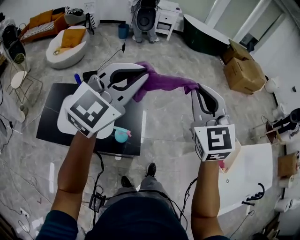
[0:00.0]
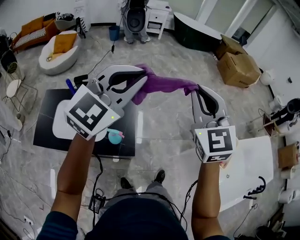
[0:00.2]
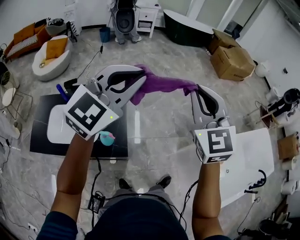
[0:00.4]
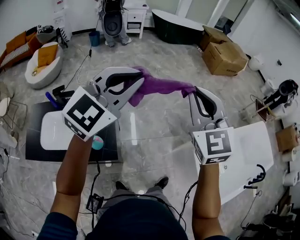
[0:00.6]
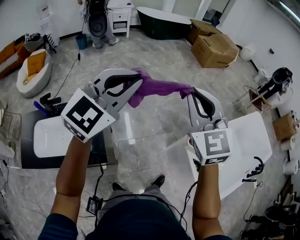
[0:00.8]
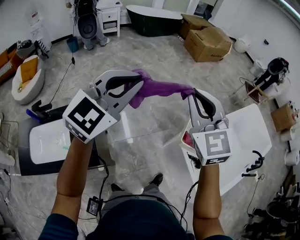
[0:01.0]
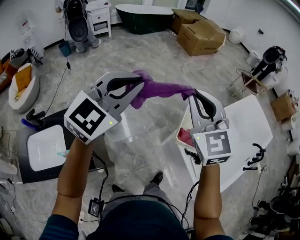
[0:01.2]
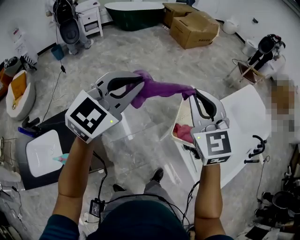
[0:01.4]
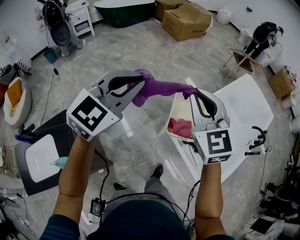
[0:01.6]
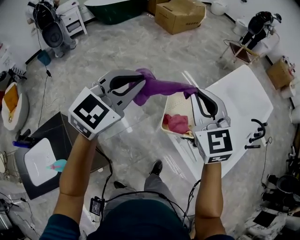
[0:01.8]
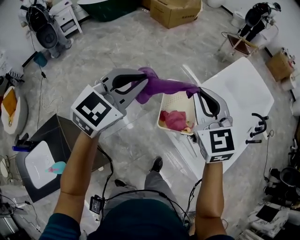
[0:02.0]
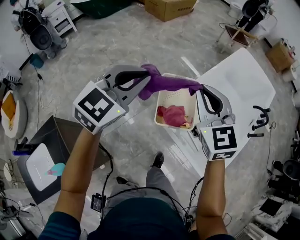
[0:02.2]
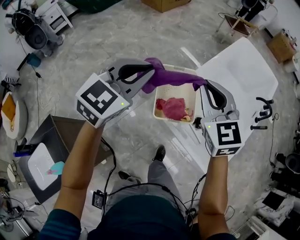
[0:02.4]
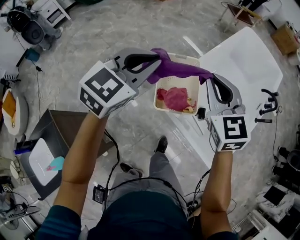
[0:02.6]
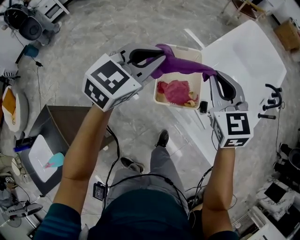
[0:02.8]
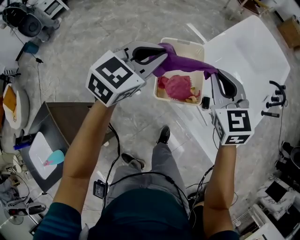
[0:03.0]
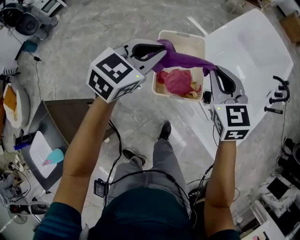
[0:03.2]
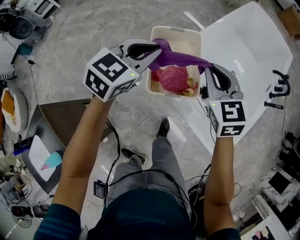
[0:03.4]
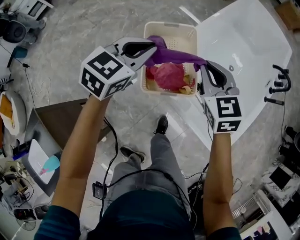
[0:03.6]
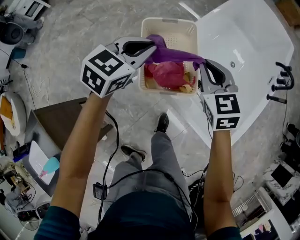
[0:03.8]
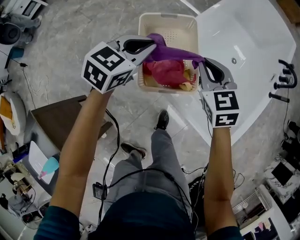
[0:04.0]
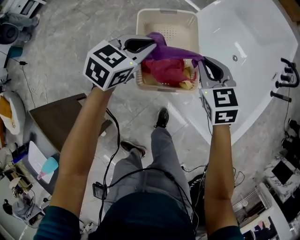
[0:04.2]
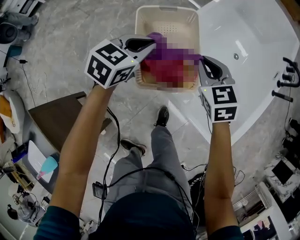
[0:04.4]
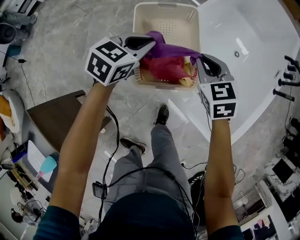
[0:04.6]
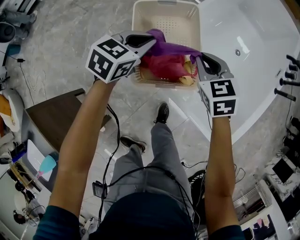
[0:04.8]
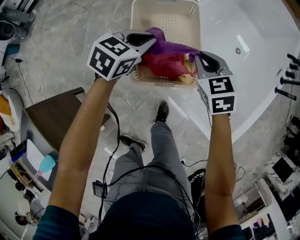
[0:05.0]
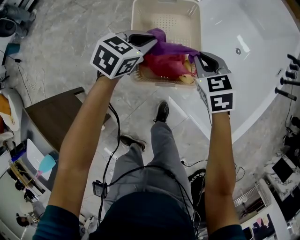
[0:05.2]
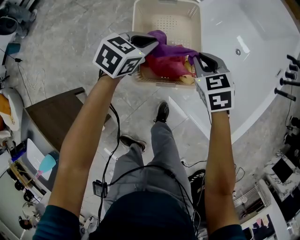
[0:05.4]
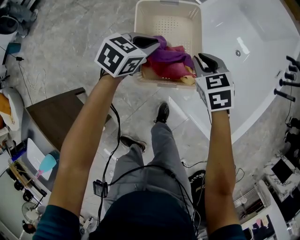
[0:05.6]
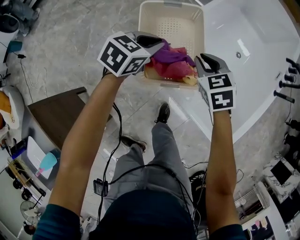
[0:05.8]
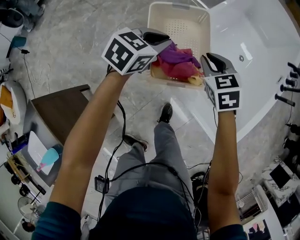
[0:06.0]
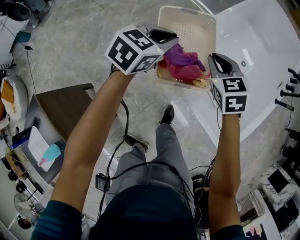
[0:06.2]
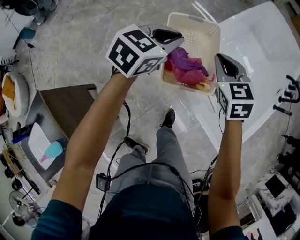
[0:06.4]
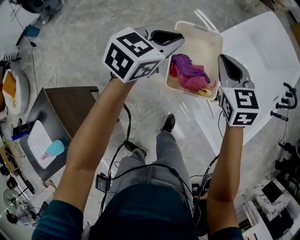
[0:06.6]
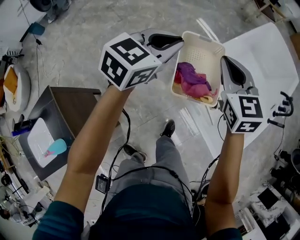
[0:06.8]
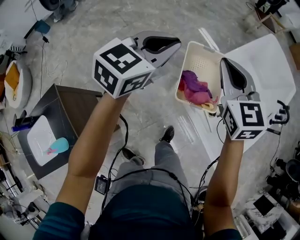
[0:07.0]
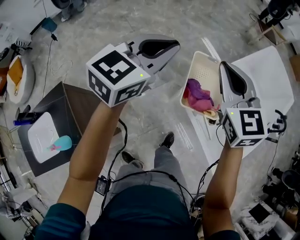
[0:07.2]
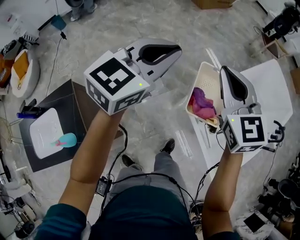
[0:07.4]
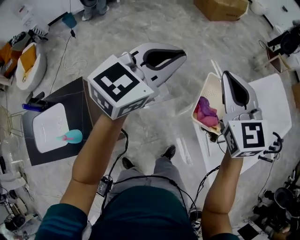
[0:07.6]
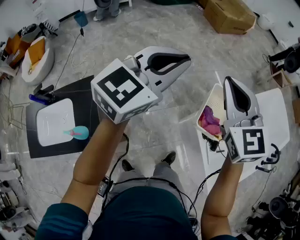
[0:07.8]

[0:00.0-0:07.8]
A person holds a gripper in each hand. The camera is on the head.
0:00.0 to 0:01.6: The two grippers travel together, roughly 60 cm. The right gripper swivels about 30 degrees. Meanwhile the left gripper swivels about 30 degrees.
0:01.6 to 0:03.2: The two grippers go some 40 cm downward, to the right and forward. The right gripper swivels roughly 30 degrees. Meanwhile the left gripper turns by approximately 30 degrees.
0:03.2 to 0:04.6: Both grippers travel together downward, approximately 20 cm.
0:04.6 to 0:06.2: The right gripper changes place by roughly 5 cm; the left gripper heads upward, covering about 5 cm.
0:06.2 to 0:07.8: The left gripper heads upward, to the left and backward, covering about 50 cm, and angles its fingers upward, by about 30 degrees, while the right gripper travels upward and to the left by some 50 cm, and angles its fingers upward, by approximately 30 degrees.

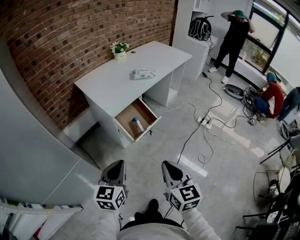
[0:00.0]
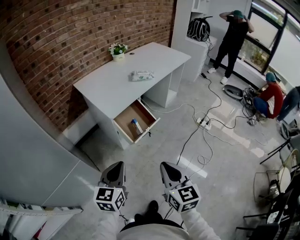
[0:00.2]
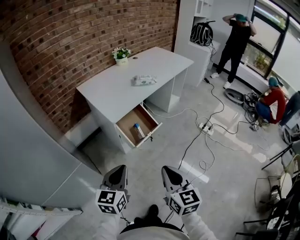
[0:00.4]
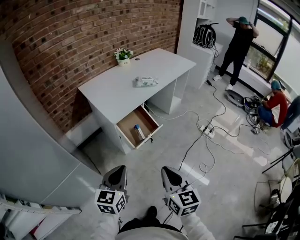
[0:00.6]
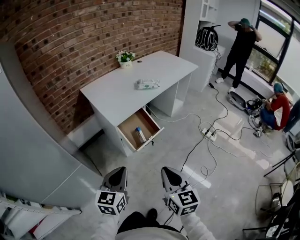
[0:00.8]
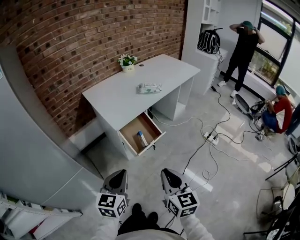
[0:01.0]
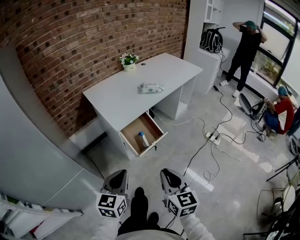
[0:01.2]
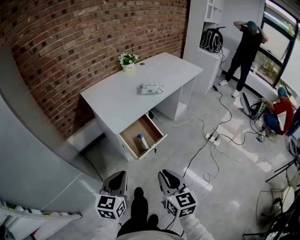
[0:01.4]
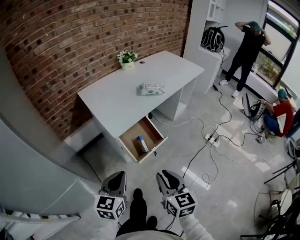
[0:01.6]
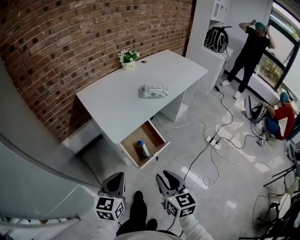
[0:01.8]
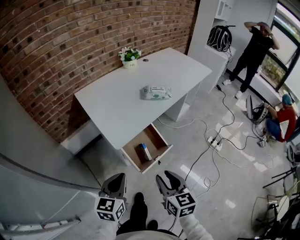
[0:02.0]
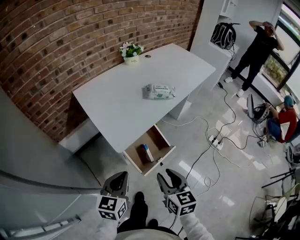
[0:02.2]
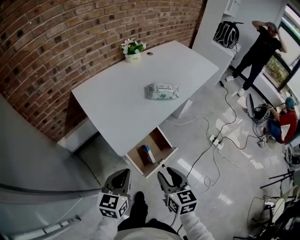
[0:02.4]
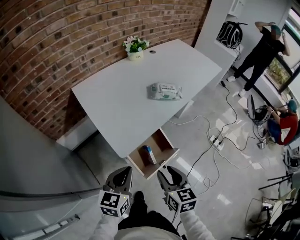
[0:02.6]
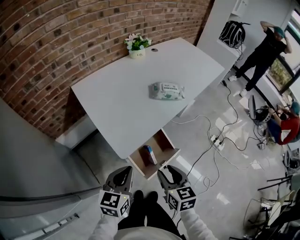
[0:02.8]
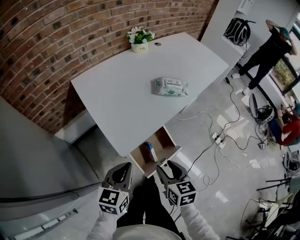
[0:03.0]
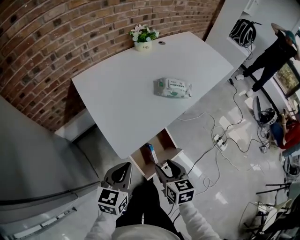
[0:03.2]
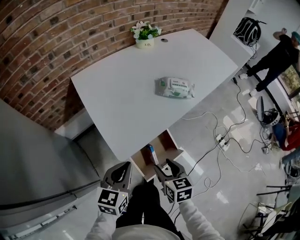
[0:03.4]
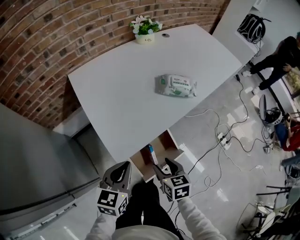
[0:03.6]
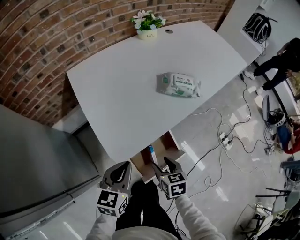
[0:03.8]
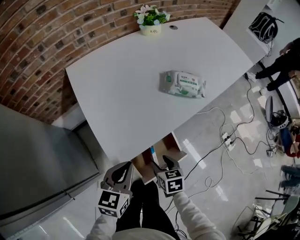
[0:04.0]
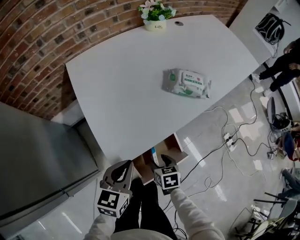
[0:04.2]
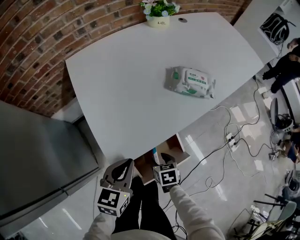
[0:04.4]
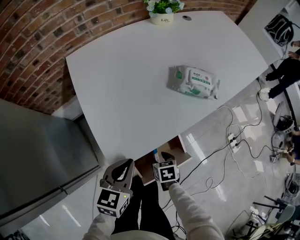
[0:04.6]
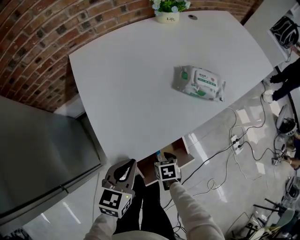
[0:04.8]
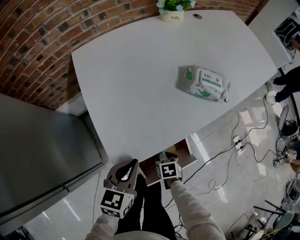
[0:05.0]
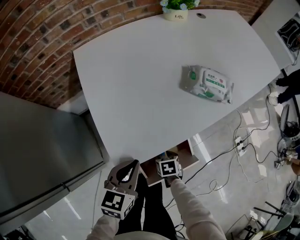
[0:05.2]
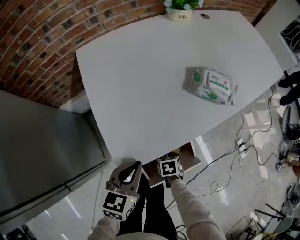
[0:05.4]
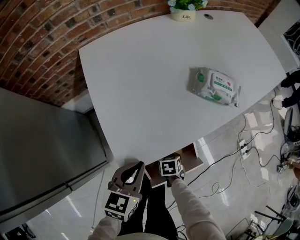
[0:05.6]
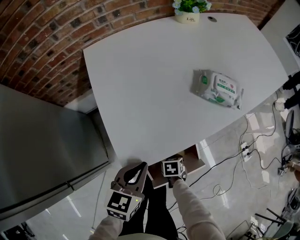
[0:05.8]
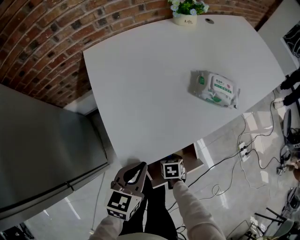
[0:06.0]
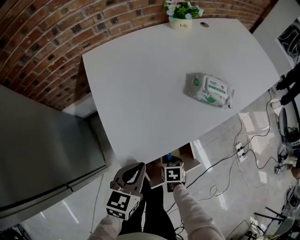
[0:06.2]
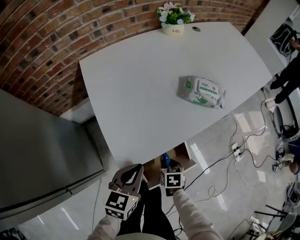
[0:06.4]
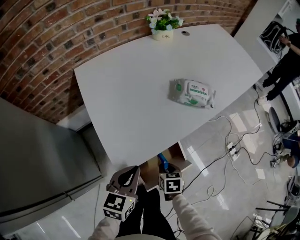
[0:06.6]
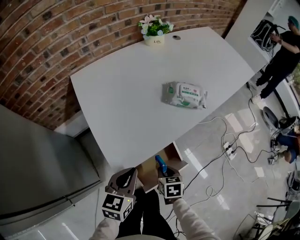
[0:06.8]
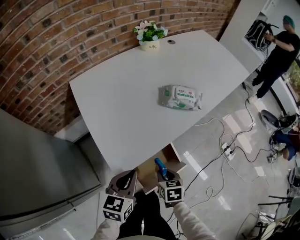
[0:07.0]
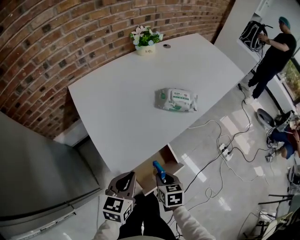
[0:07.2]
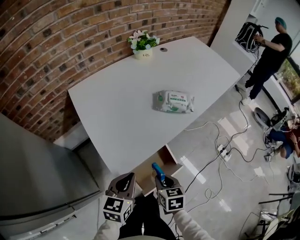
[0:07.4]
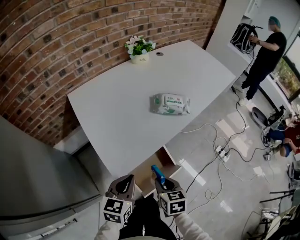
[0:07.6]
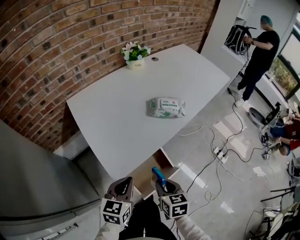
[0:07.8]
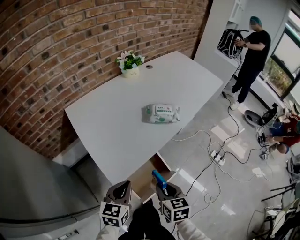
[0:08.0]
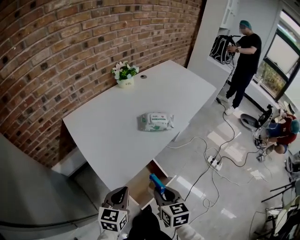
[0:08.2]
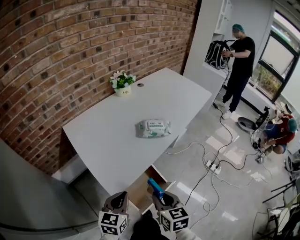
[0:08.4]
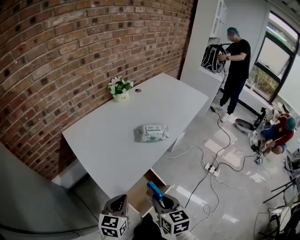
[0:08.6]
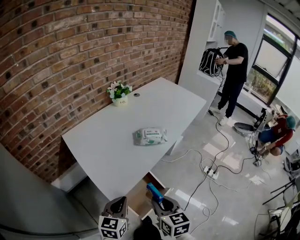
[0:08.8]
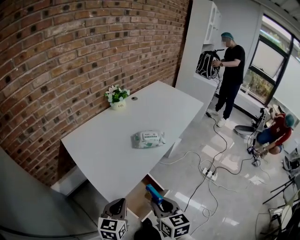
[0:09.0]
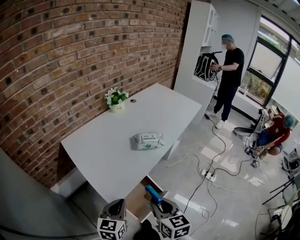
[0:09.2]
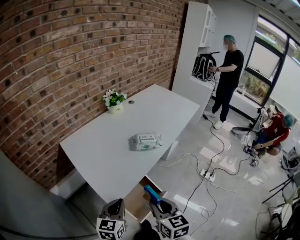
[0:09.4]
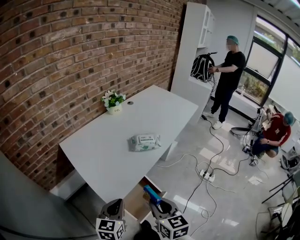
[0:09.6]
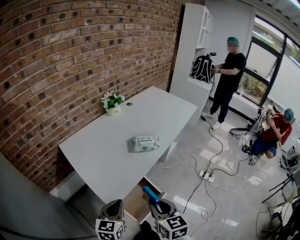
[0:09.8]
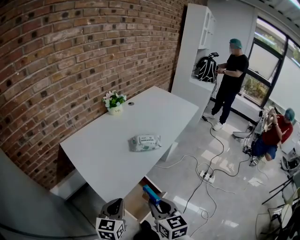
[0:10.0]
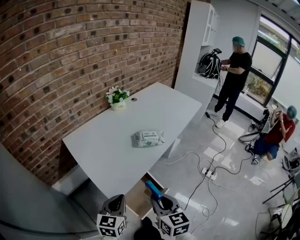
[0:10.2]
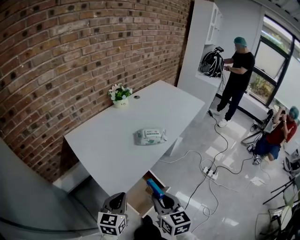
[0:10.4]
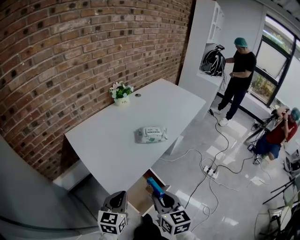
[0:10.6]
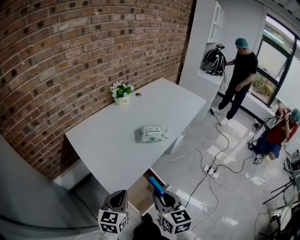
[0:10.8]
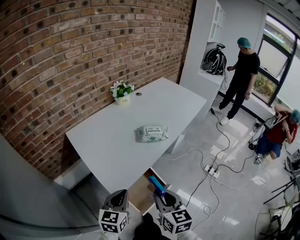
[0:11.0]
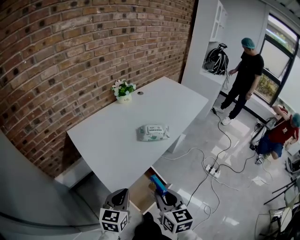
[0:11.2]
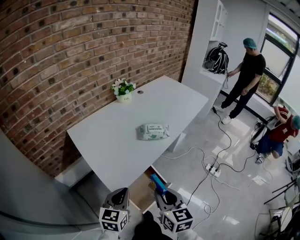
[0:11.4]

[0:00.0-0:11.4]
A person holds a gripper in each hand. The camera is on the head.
0:00.0 to 0:01.4: The two grippers go some 5 cm forward.
0:01.4 to 0:02.8: Both grippers move forward, about 25 cm. The right gripper opens up.
0:02.8 to 0:04.2: The right gripper heads downward and forward, covering approximately 25 cm, and changes its angle by some 30 degrees. Meanwhile the left gripper heads forward and downward, covering approximately 15 cm.
0:04.2 to 0:05.6: The right gripper shifts about 10 cm downward, and closes up.
0:05.6 to 0:07.2: The left gripper ends up about 5 cm from where it was; the right gripper goes roughly 20 cm upward, and turns by some 20 degrees.
0:07.2 to 0:08.6: The left gripper goes roughly 5 cm upward. The right gripper is displaced upward by about 20 cm, and turns by some 20 degrees.
0:08.6 to 0:10.0: The right gripper ends up about 5 cm from where it was.
0:10.0 to 0:11.4: Neither gripper changes place.

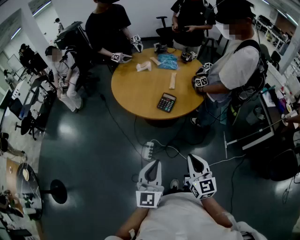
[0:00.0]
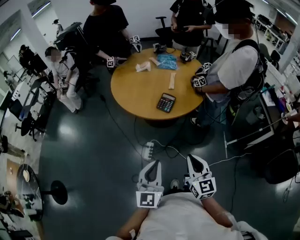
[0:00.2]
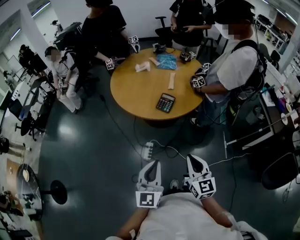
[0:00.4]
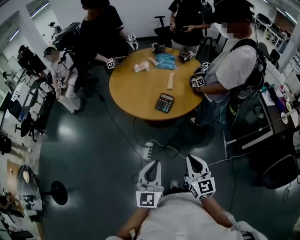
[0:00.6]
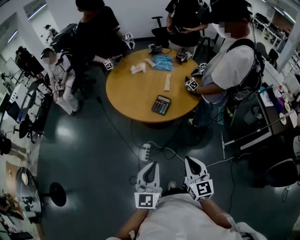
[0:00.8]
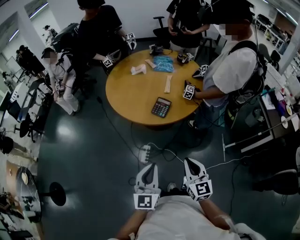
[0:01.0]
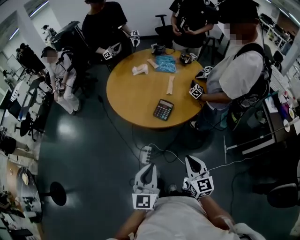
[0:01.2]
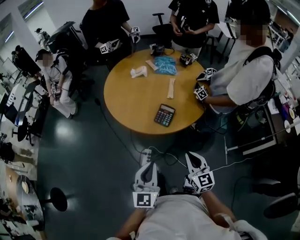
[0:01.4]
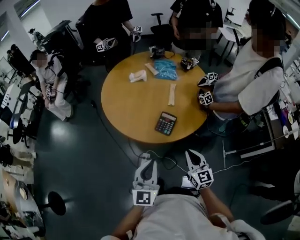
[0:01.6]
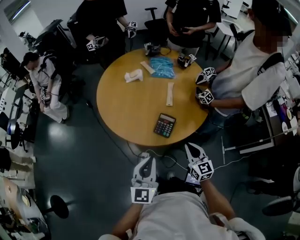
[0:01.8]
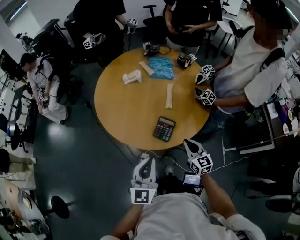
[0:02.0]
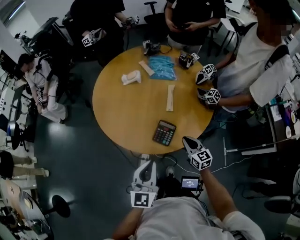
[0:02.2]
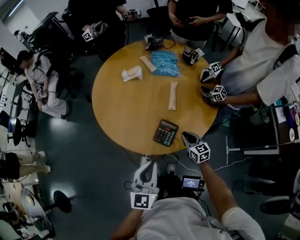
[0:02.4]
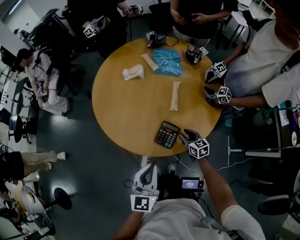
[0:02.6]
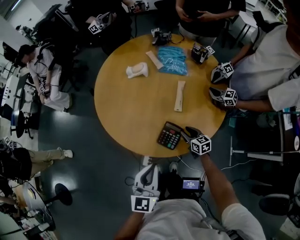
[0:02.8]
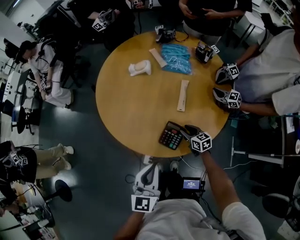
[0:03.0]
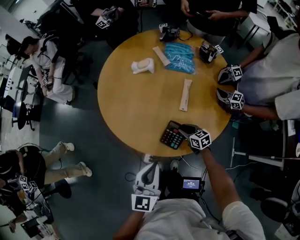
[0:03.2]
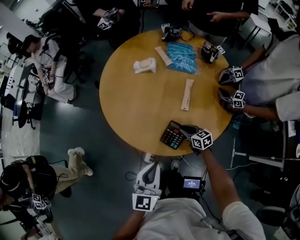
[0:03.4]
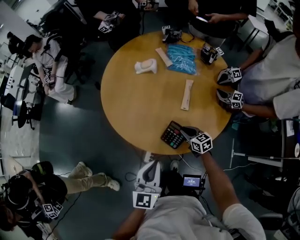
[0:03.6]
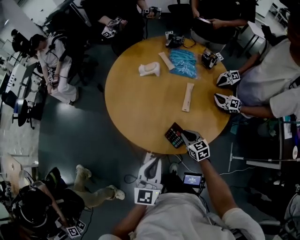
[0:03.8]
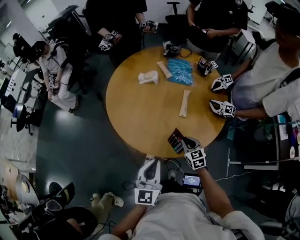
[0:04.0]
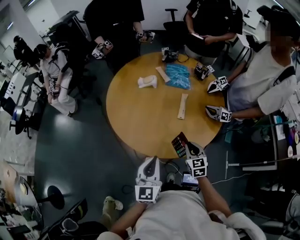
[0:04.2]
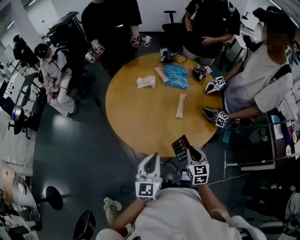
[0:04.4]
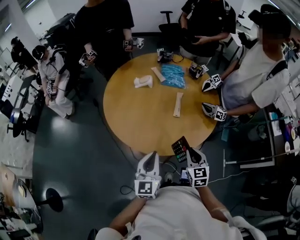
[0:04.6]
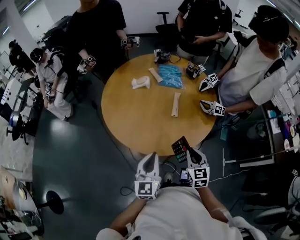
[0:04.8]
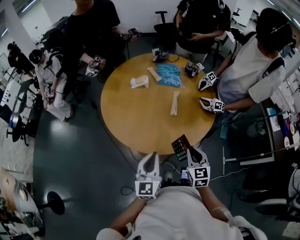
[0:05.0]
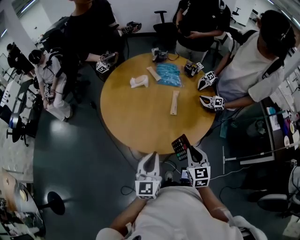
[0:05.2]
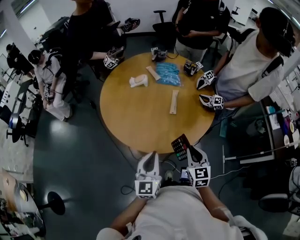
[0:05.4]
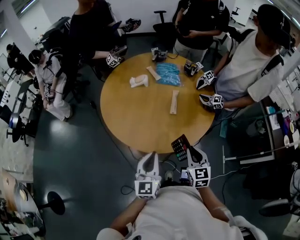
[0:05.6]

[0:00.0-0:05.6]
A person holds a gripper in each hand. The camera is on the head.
0:00.0 to 0:01.4: The right gripper is displaced forward and downward by some 15 cm, while the left gripper heads forward, covering roughly 15 cm.
0:01.4 to 0:02.8: The right gripper heads forward and downward, covering about 40 cm, rotates some 30 degrees, and opens its fingers. Meanwhile the left gripper heads forward, covering some 20 cm.
0:02.8 to 0:04.2: The right gripper goes some 15 cm upward and backward, turns by about 30 degrees, and closes up.
0:04.2 to 0:05.6: The right gripper goes some 10 cm upward and backward.
